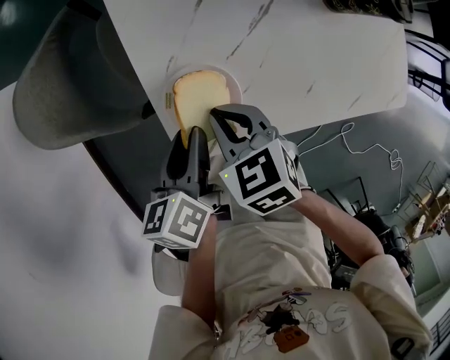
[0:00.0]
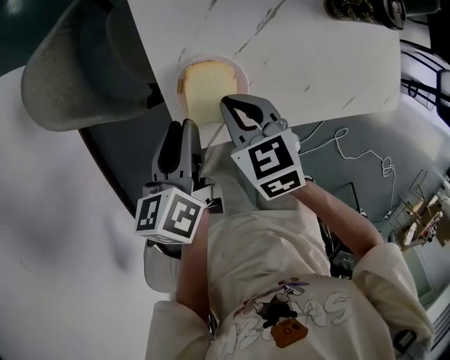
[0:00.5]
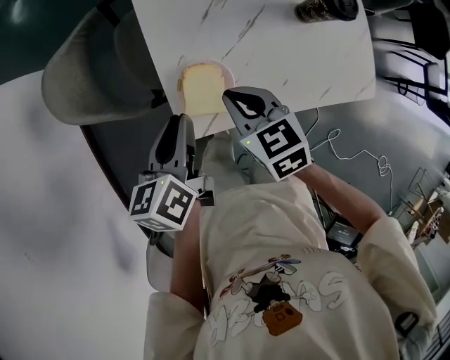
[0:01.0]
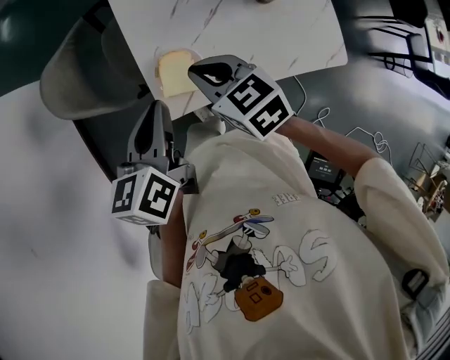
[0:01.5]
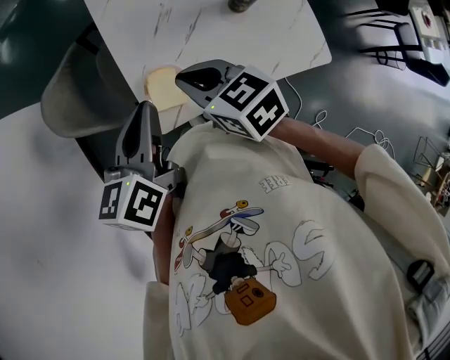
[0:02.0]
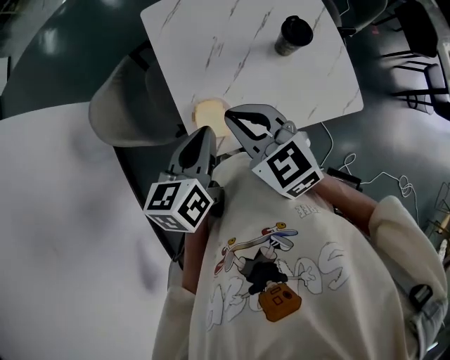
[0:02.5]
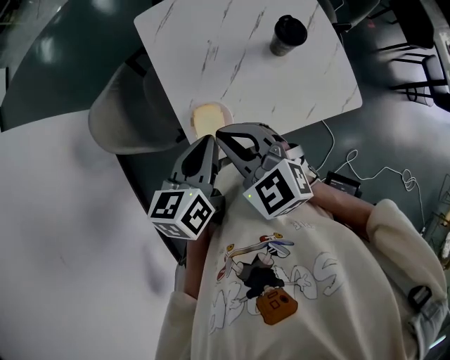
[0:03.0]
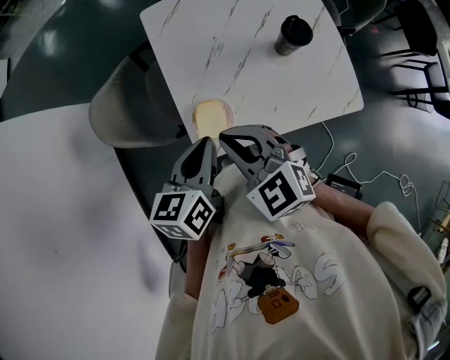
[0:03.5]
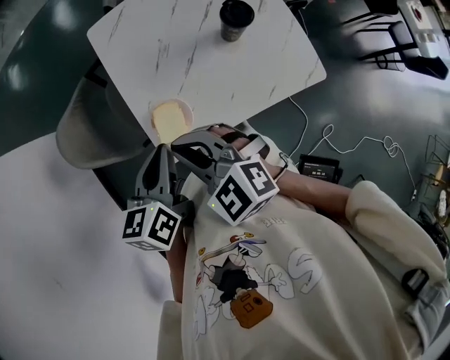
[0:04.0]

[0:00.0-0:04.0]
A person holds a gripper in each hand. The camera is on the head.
0:00.0 to 0:02.0: Both grippers move upward, some 25 cm. The left gripper changes its angle by about 30 degrees, and closes.
0:02.0 to 0:04.0: The right gripper goes about 5 cm upward, and turns by some 30 degrees.

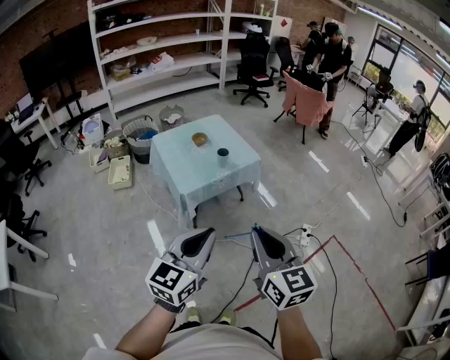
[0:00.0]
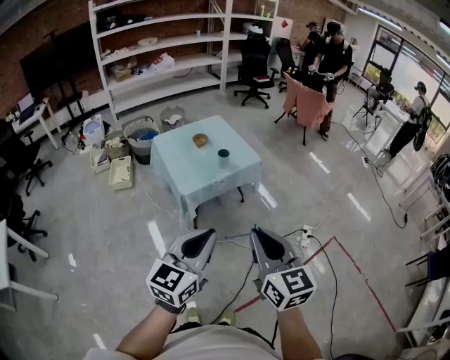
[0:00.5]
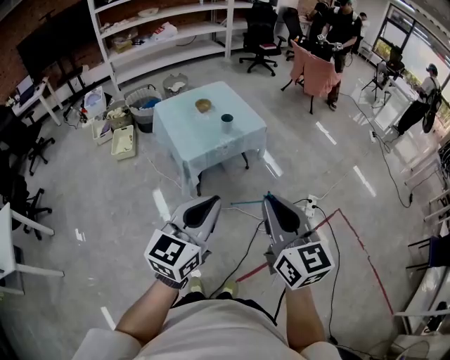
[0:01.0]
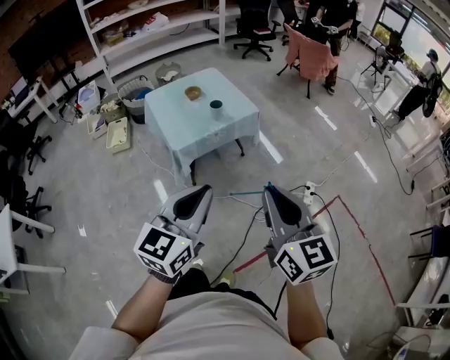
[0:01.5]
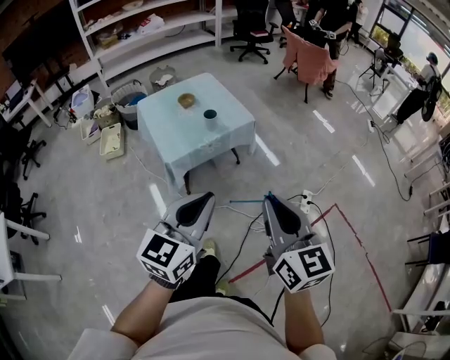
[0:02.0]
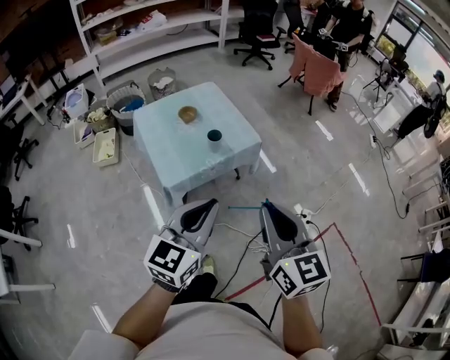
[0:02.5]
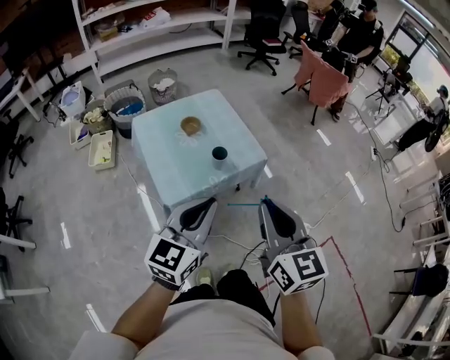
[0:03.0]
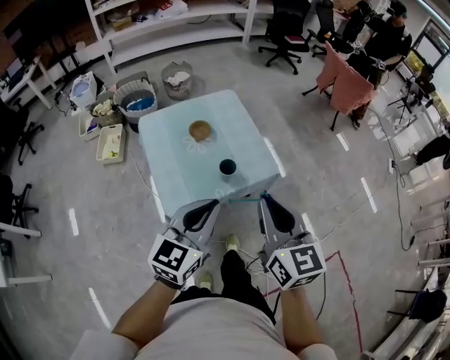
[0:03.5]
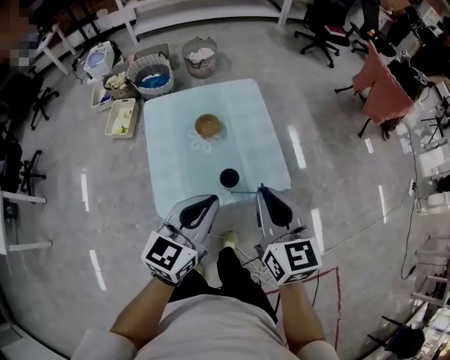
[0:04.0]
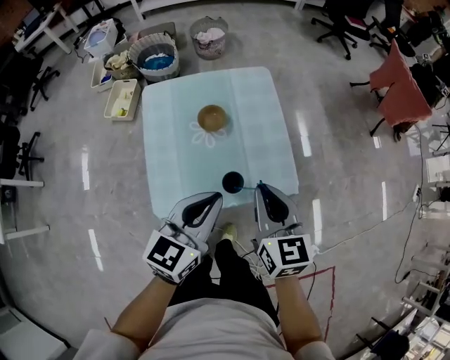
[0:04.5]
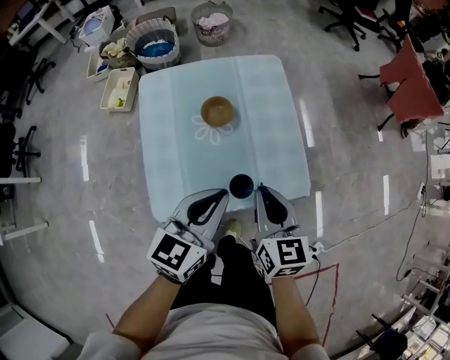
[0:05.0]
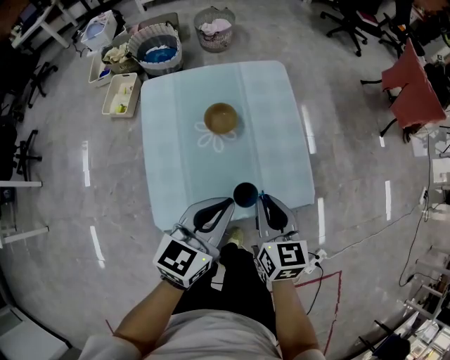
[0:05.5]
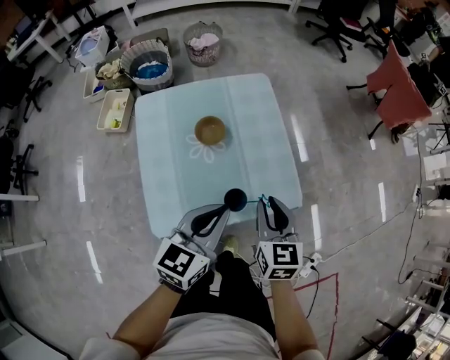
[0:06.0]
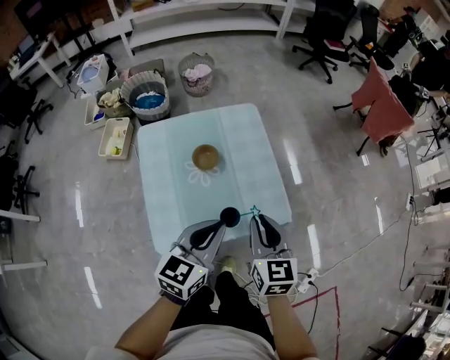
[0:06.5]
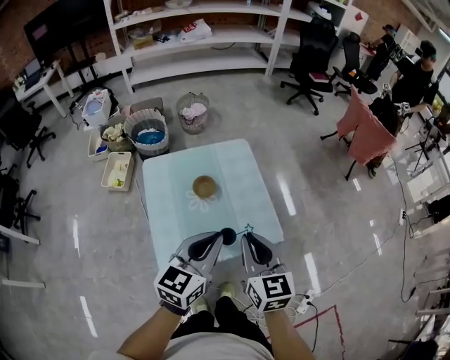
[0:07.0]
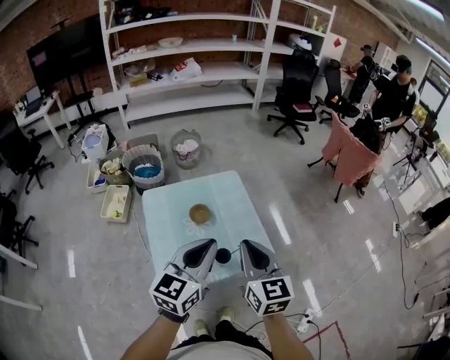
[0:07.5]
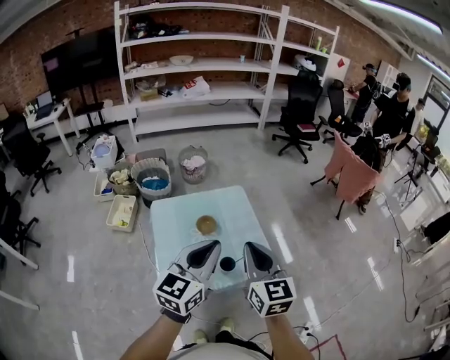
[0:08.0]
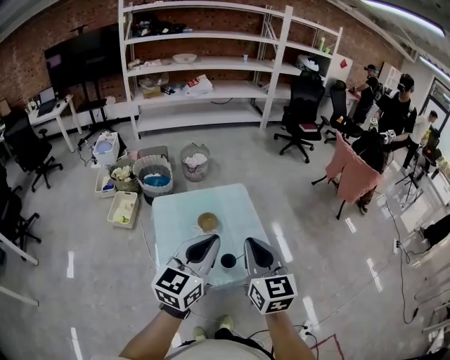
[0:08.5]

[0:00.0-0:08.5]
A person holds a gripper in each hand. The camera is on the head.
0:00.0 to 0:02.0: The right gripper heads to the right and forward, covering roughly 10 cm; the left gripper travels forward and to the right by about 10 cm.
0:02.0 to 0:04.0: The pair of grippers is taken forward, approximately 50 cm. The right gripper rotates approximately 20 degrees.
0:04.0 to 0:06.5: The left gripper is displaced forward and downward by roughly 10 cm. The right gripper goes roughly 15 cm downward and forward.
0:06.5 to 0:08.5: Both grippers move upward, approximately 20 cm.

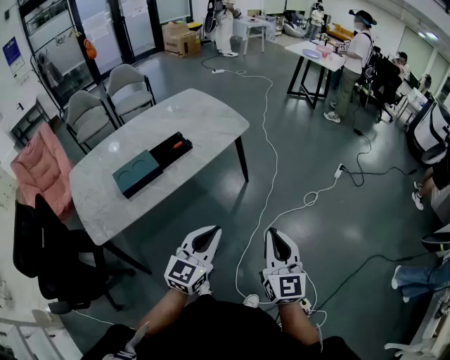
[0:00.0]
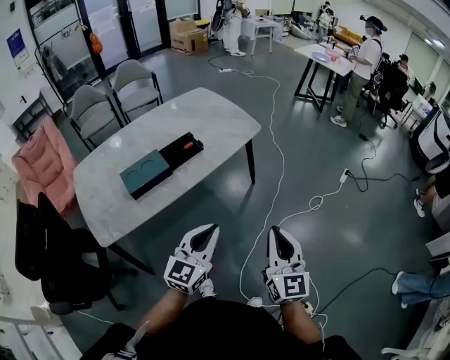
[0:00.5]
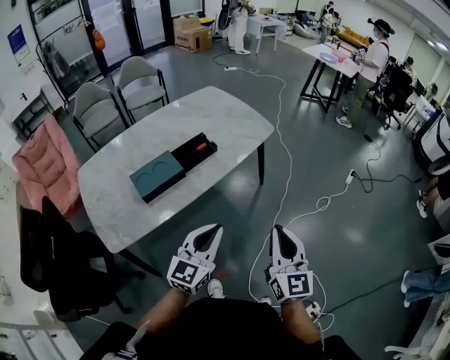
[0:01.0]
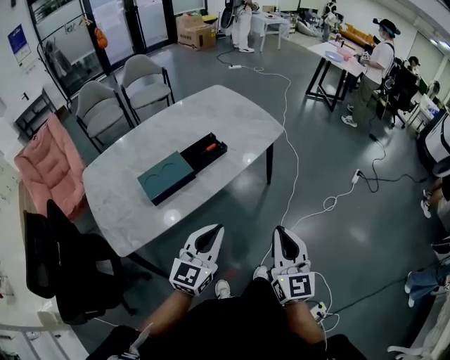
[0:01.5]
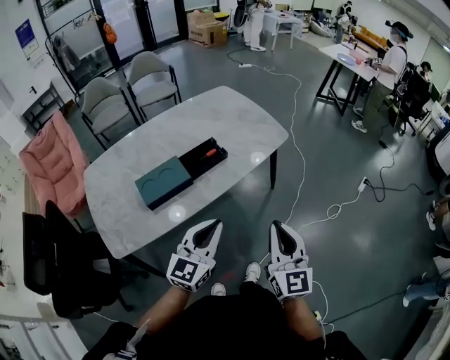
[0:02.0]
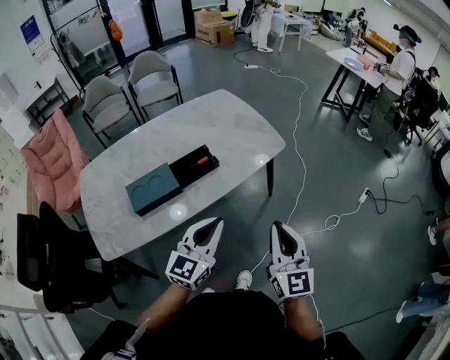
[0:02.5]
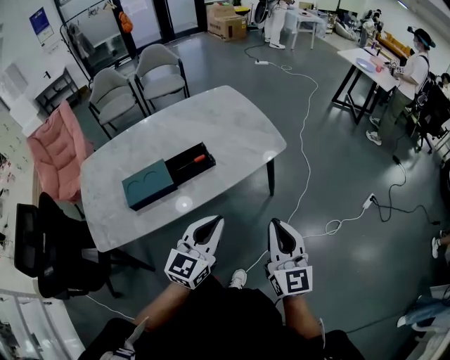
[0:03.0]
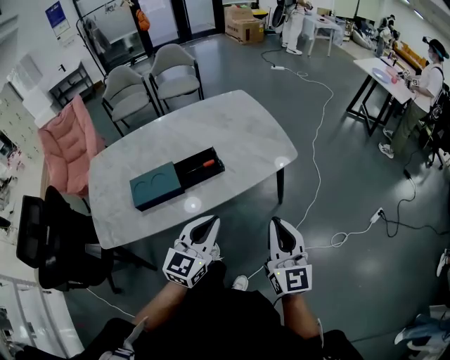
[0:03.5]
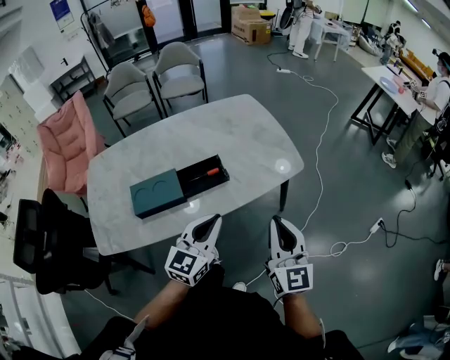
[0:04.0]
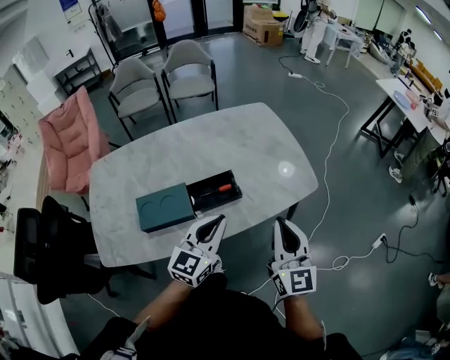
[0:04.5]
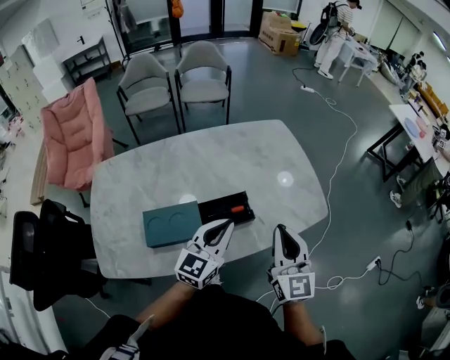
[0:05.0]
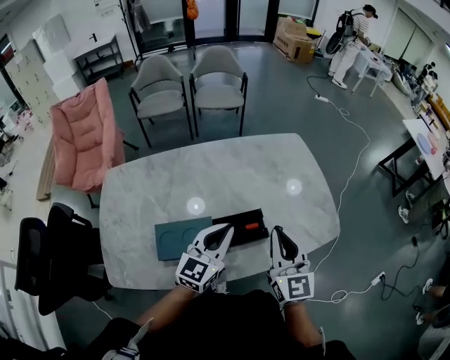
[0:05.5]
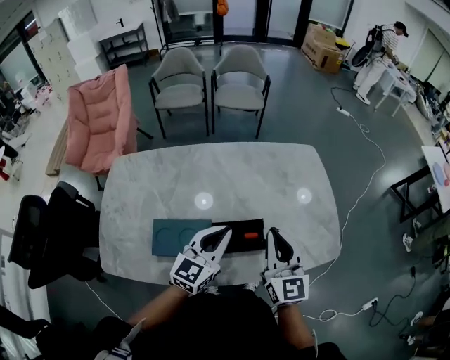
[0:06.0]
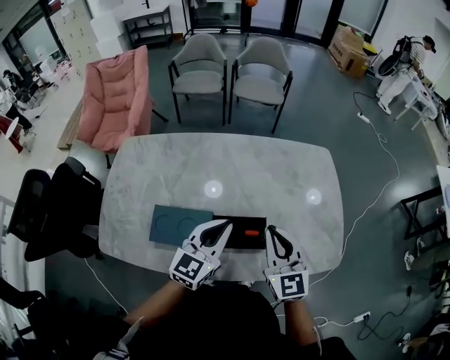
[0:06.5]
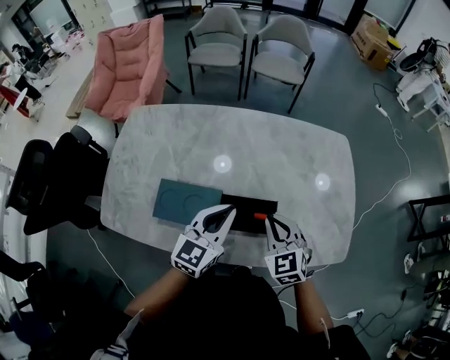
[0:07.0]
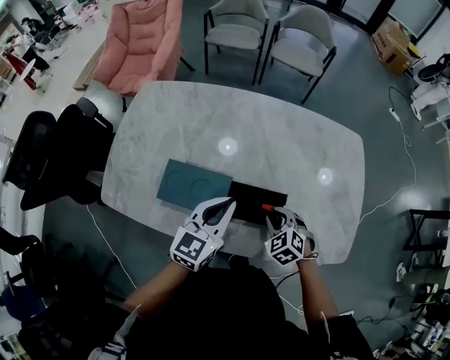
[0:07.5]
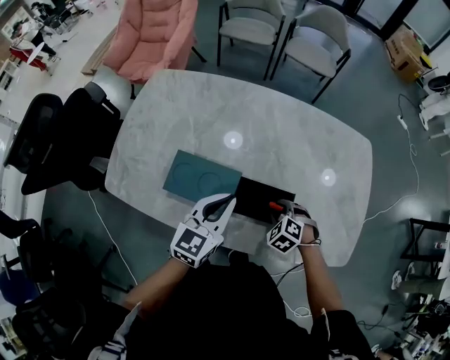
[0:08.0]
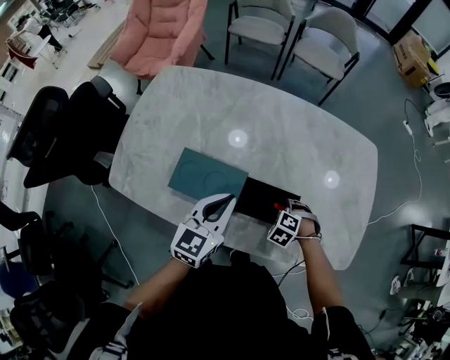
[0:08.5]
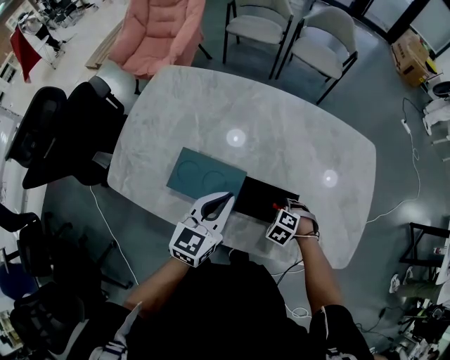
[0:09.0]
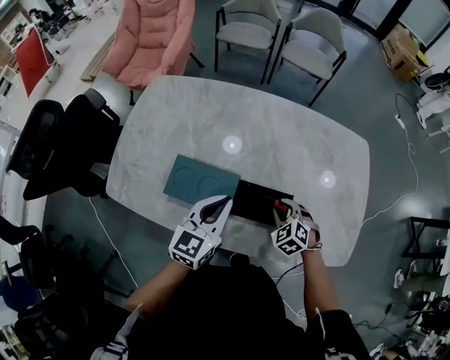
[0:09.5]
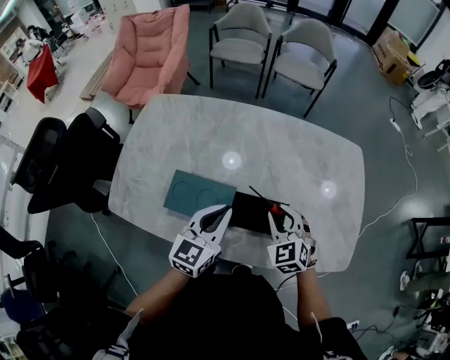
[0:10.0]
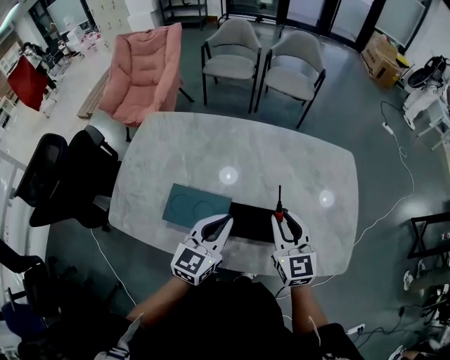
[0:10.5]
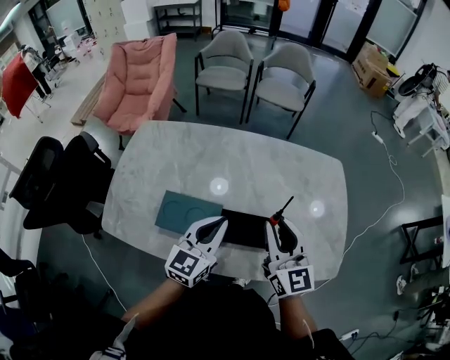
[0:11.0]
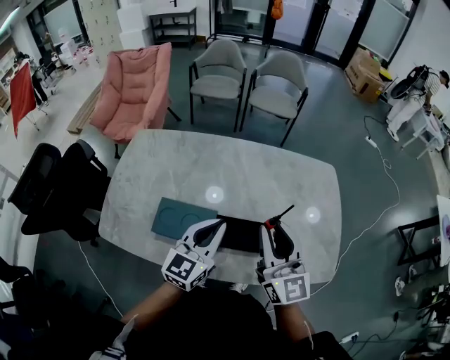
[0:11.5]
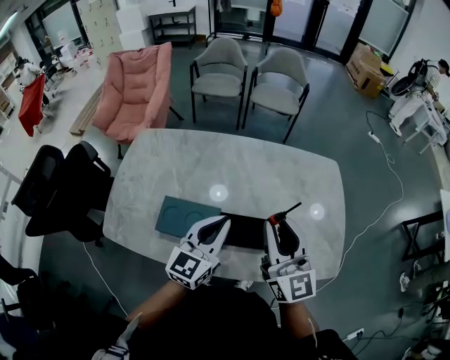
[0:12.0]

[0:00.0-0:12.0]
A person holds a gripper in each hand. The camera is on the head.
0:00.0 to 0:02.0: Both grippers move to the left and forward, approximately 20 cm.
0:02.0 to 0:04.0: Both grippers travel together forward, approximately 20 cm.
0:04.0 to 0:06.0: The grippers both shift forward and to the left by approximately 30 cm.
0:06.0 to 0:08.0: The left gripper goes approximately 10 cm downward and to the left, and turns by approximately 20 degrees; the right gripper goes approximately 30 cm downward, angles its fingers downward, by some 70 degrees, and opens.
0:08.0 to 0:10.0: The right gripper moves upward, approximately 15 cm, and angles its fingers upward, by approximately 30 degrees.
0:10.0 to 0:12.0: The left gripper heads upward, covering about 5 cm, while the right gripper shifts approximately 20 cm upward, and tilts its fingers about 50 degrees upward.

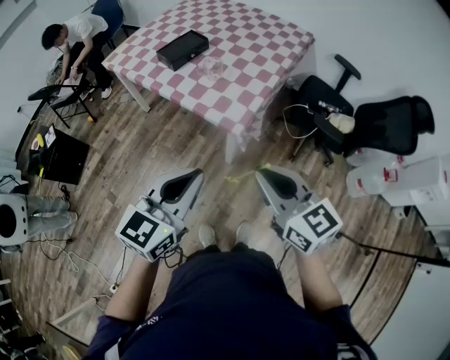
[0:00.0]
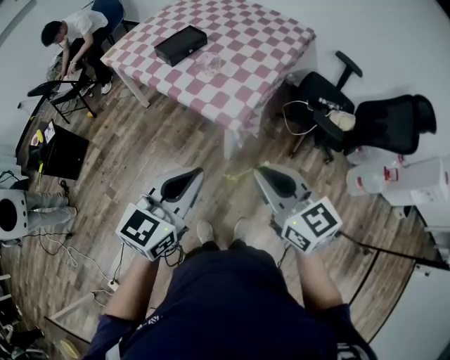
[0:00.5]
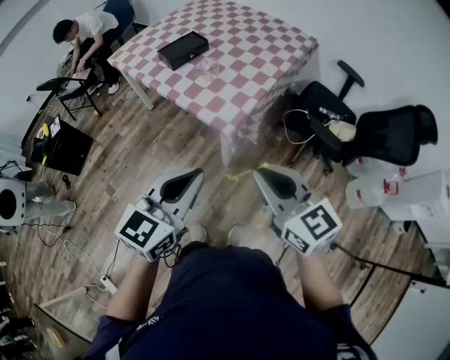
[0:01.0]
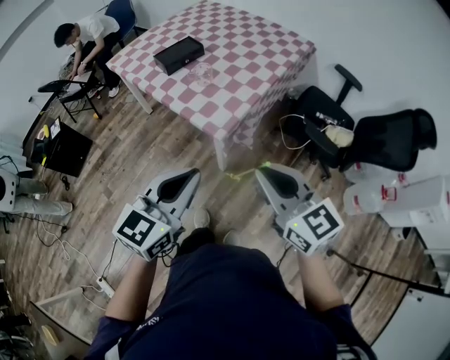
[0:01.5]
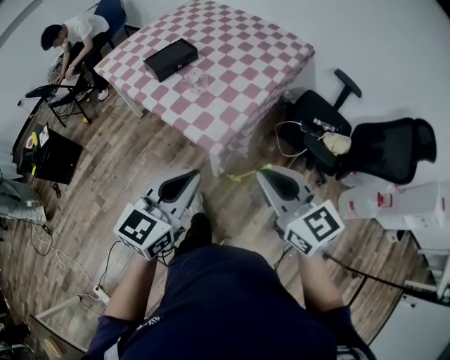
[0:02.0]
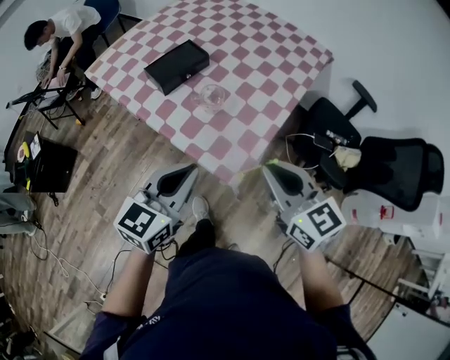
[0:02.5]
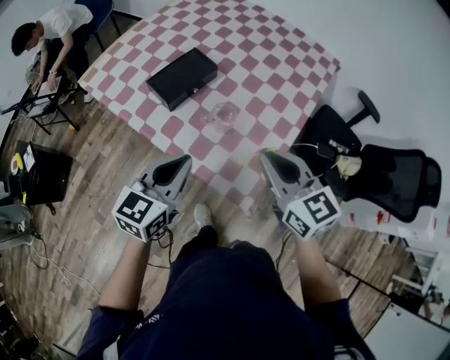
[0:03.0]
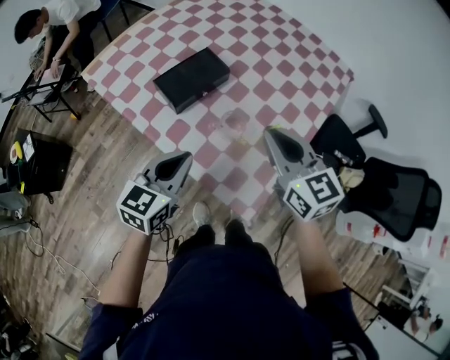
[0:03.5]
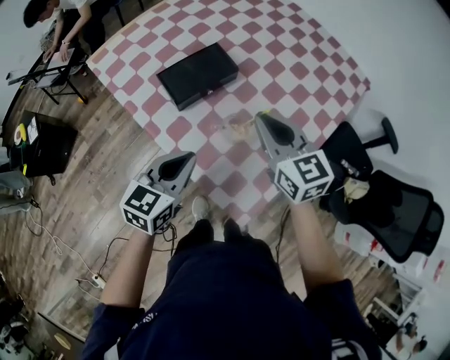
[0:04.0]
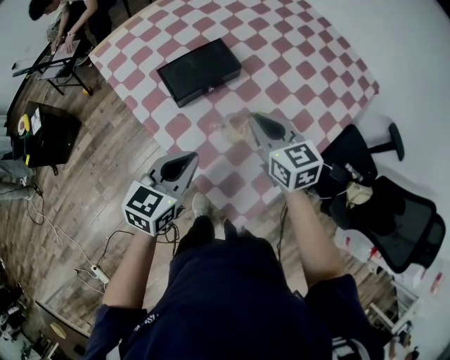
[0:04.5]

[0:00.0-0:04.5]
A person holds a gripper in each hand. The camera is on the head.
0:00.0 to 0:02.0: The grippers both shift to the right and forward by about 10 cm.
0:02.0 to 0:04.5: Both grippers travel together forward, some 40 cm.
